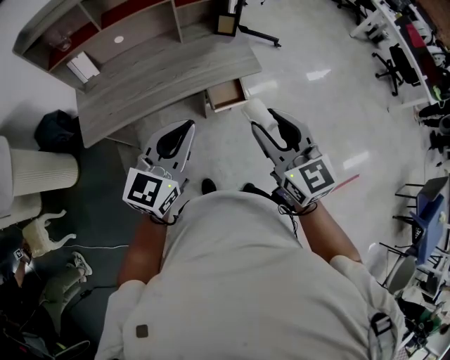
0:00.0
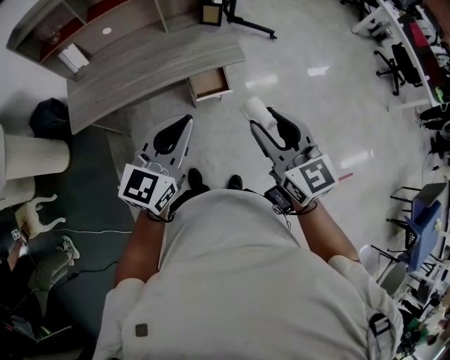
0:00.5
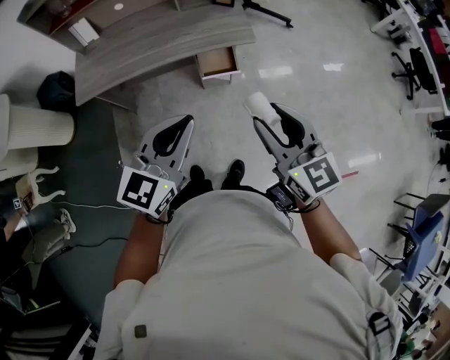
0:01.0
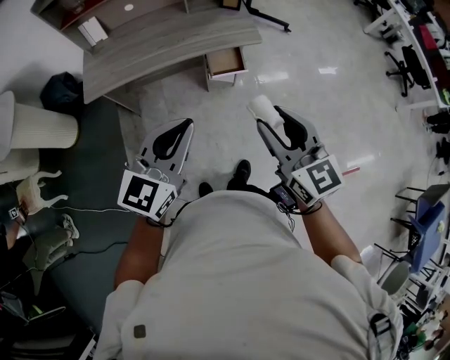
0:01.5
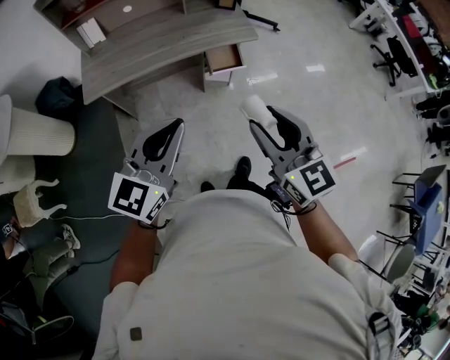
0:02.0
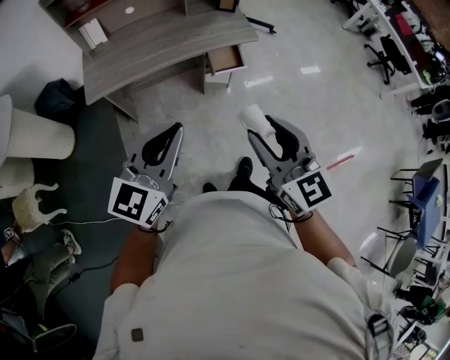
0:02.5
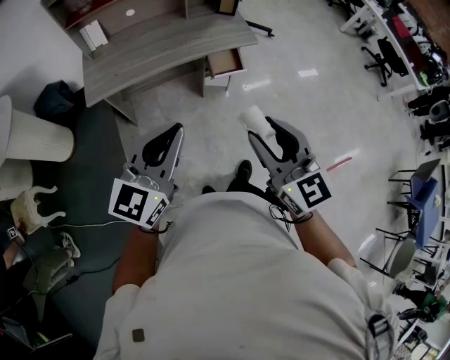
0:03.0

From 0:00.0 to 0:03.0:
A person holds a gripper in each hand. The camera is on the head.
From 0:00.0 to 0:01.5: The left gripper is displaced backward by approximately 15 cm, while the right gripper travels backward and to the right by some 15 cm.
From 0:01.5 to 0:03.0: Both grippers move to the left and backward, roughly 15 cm.

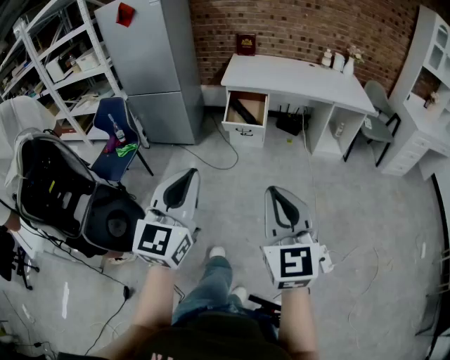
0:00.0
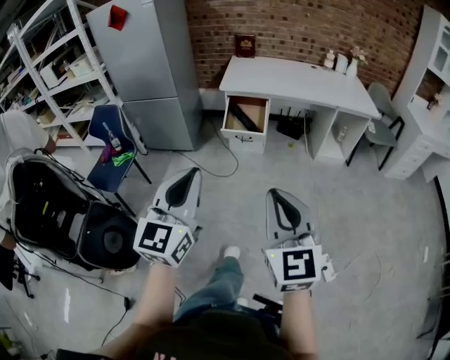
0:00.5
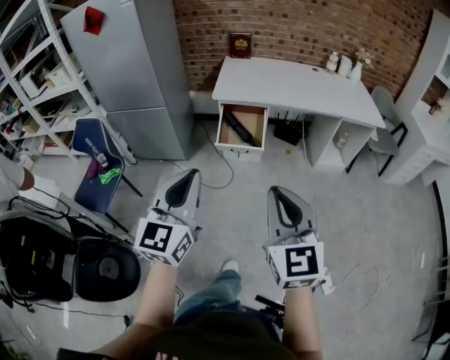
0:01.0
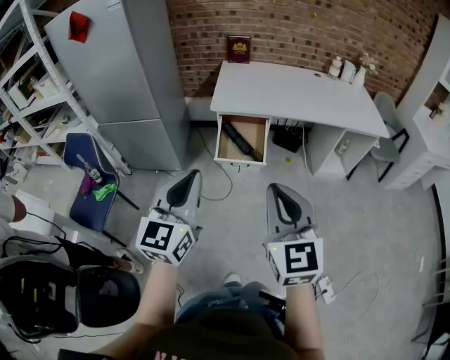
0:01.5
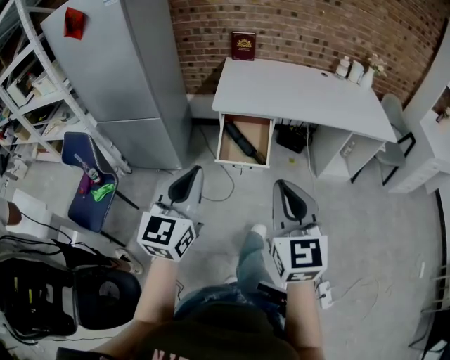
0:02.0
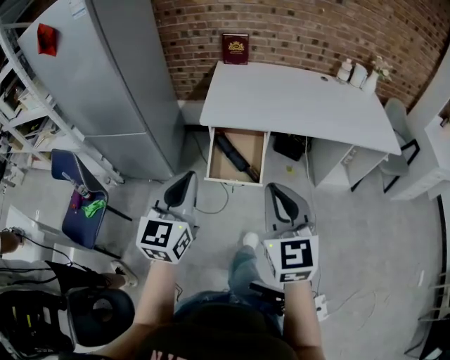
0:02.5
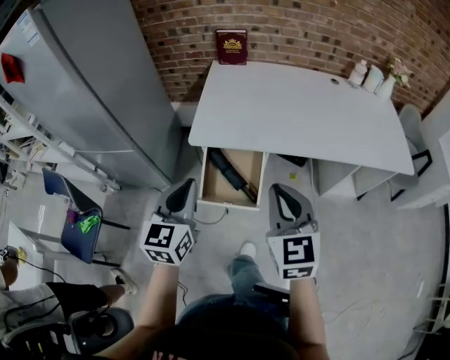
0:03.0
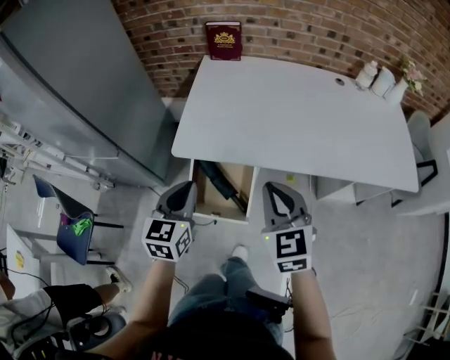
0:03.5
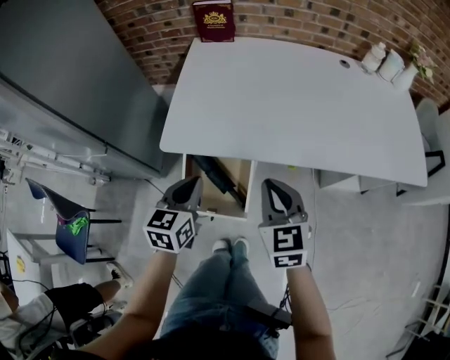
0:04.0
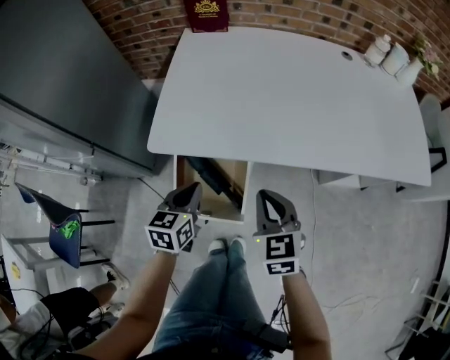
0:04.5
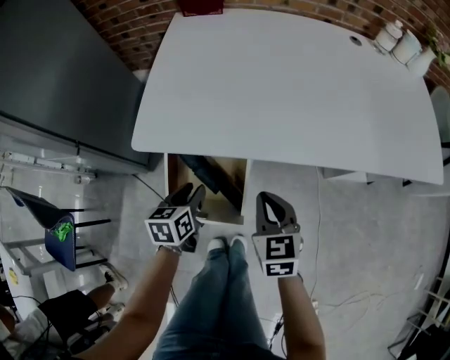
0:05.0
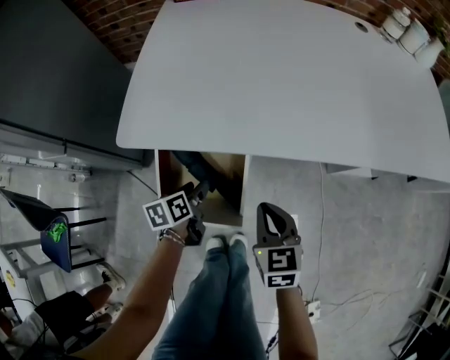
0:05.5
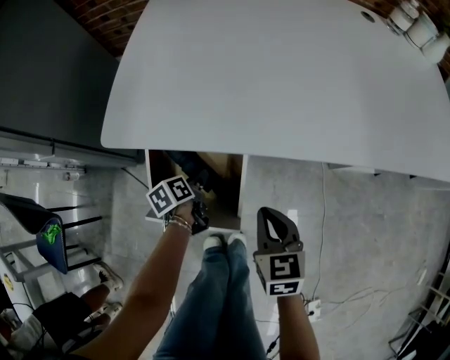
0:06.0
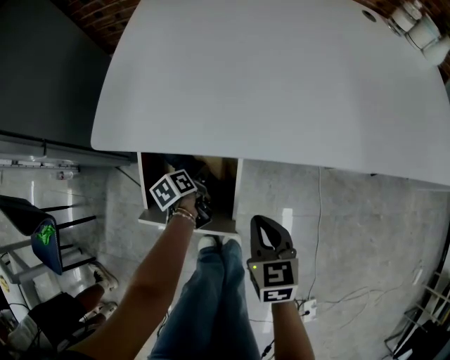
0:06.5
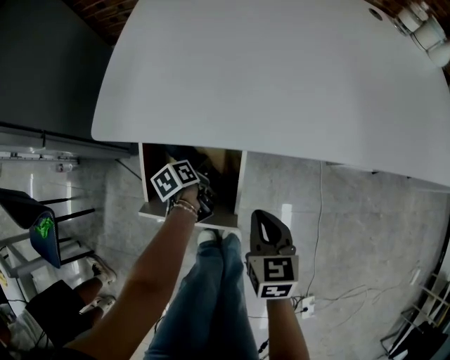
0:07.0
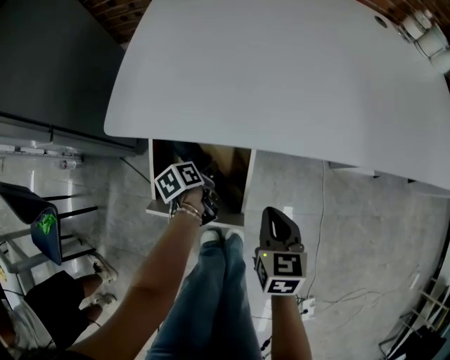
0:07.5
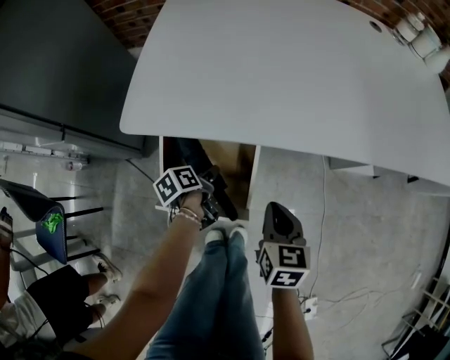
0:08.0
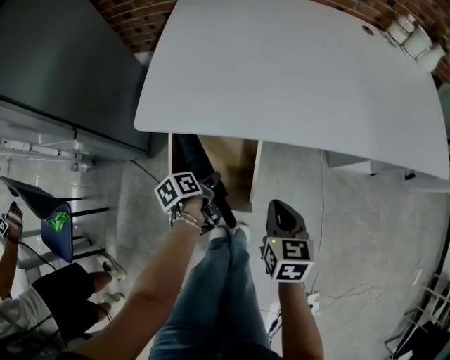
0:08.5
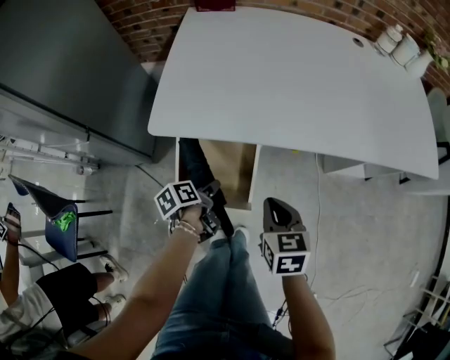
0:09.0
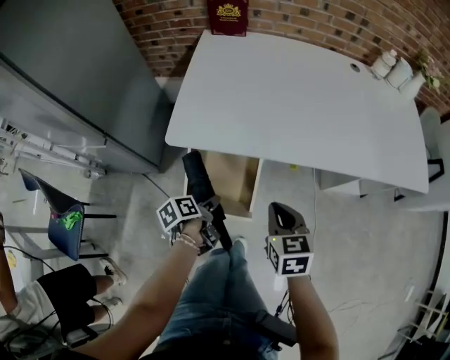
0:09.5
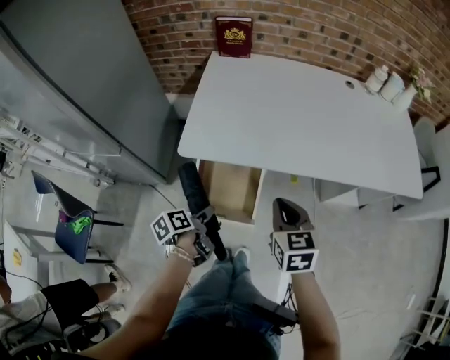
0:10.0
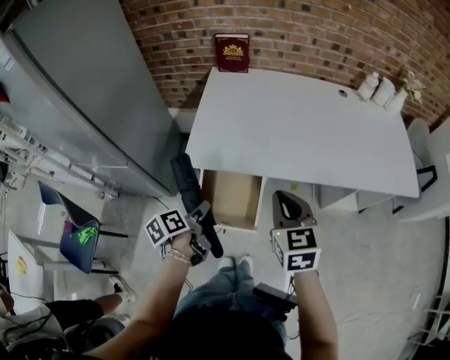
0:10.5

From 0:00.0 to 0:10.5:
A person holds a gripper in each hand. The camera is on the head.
From 0:00.0 to 0:02.0: The two grippers travel together, forward, roughly 40 cm.
From 0:02.0 to 0:04.0: The pair of grippers is taken forward, about 50 cm. The left gripper goes some 20 cm downward, and swivels roughly 30 degrees; the right gripper turns by some 20 degrees.
From 0:04.0 to 0:06.5: The right gripper moves downward, roughly 25 cm, and turns by approximately 20 degrees. The left gripper travels downward by roughly 40 cm, rotates around the line of its fingers by some 50 degrees, counterclockwise from behind, and opens its fingers.
From 0:06.5 to 0:08.5: The left gripper moves upward and backward, roughly 10 cm; the right gripper moves upward, approximately 5 cm.
From 0:08.5 to 0:10.5: The two grippers go approximately 25 cm upward. The right gripper changes its angle by about 20 degrees.

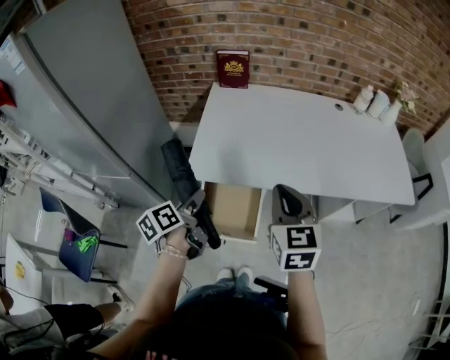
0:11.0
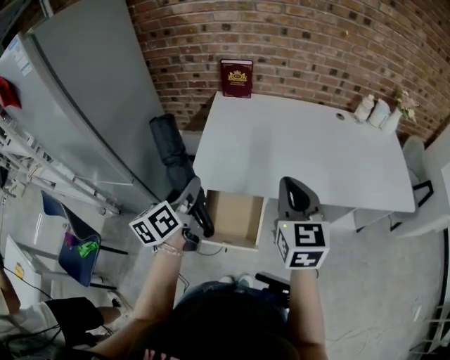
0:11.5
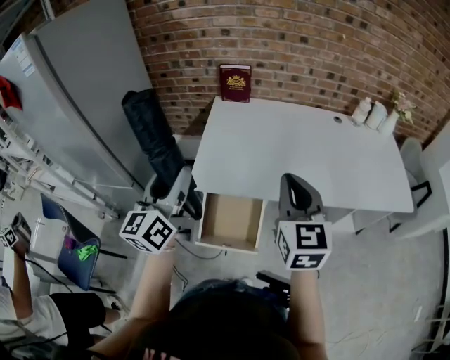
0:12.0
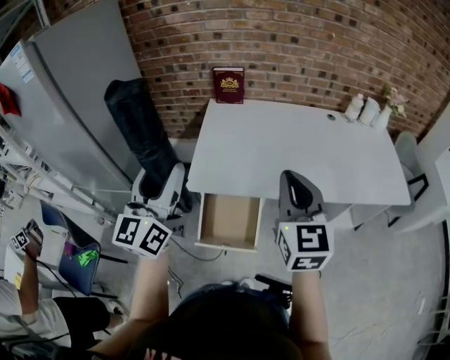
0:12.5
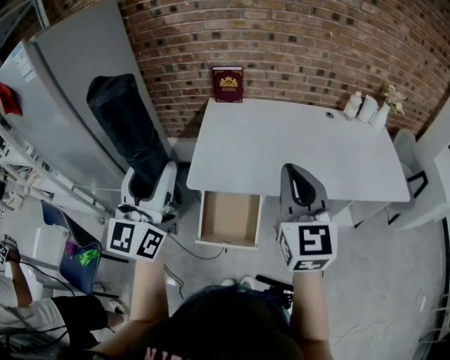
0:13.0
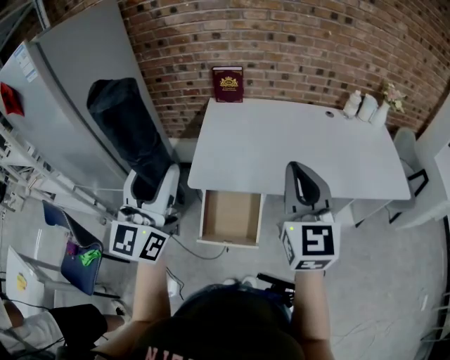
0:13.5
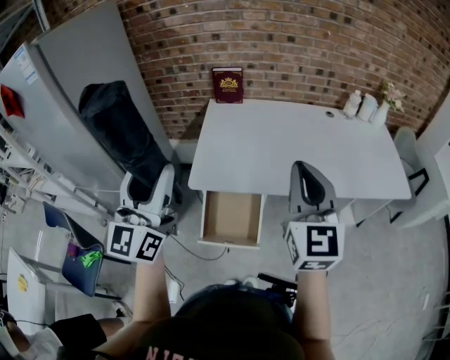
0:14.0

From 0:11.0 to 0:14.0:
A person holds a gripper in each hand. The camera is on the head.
From 0:11.0 to 0:12.5: The right gripper heads upward, covering some 10 cm. The left gripper heads upward, covering about 25 cm, and points its fingers some 40 degrees further upward.
From 0:12.5 to 0:14.0: The left gripper changes place by approximately 5 cm. The right gripper changes place by some 5 cm.

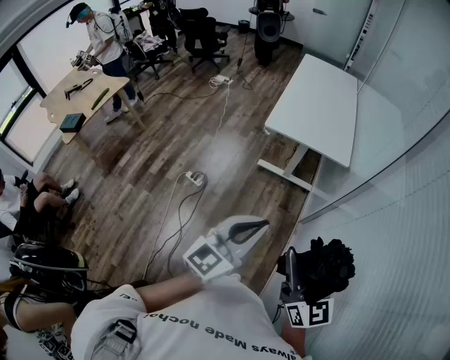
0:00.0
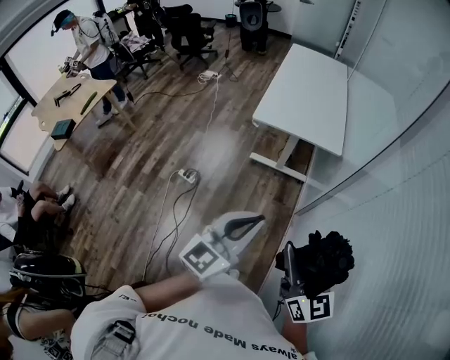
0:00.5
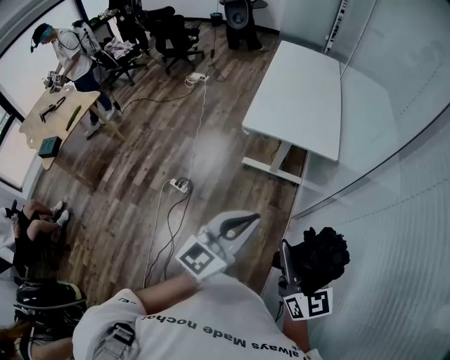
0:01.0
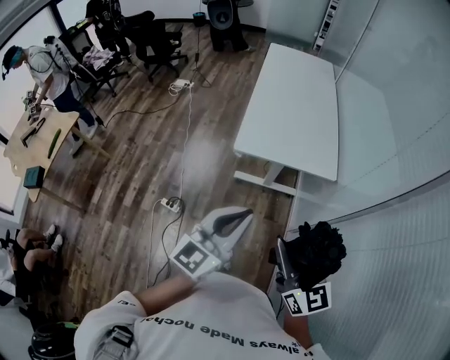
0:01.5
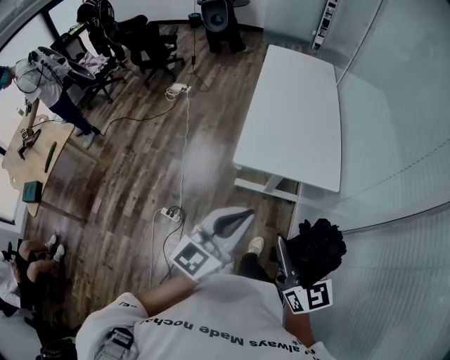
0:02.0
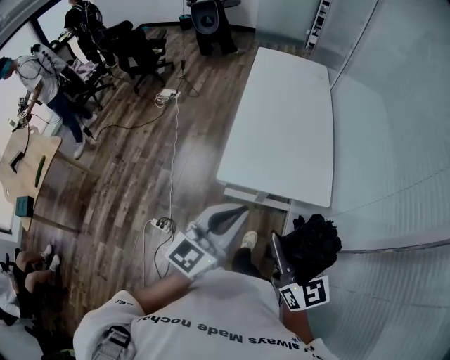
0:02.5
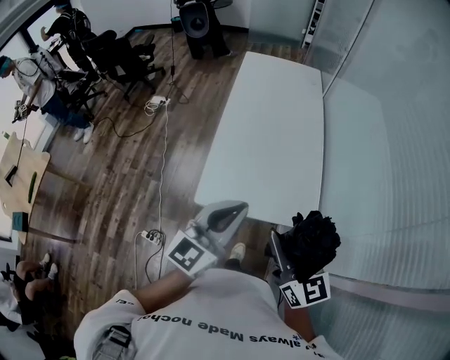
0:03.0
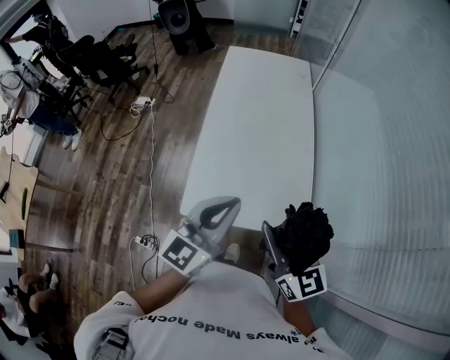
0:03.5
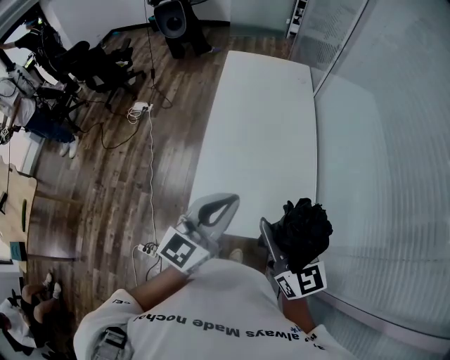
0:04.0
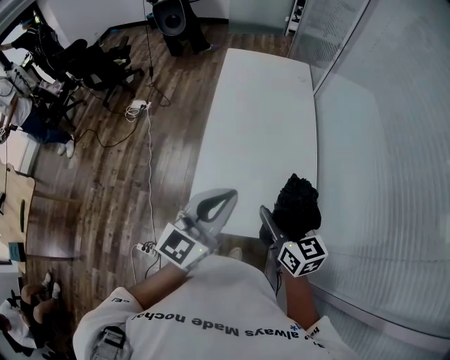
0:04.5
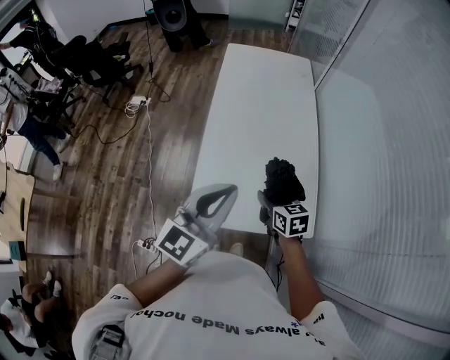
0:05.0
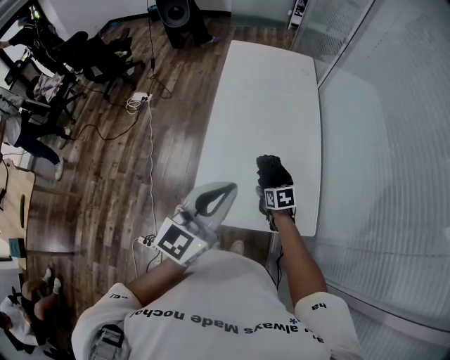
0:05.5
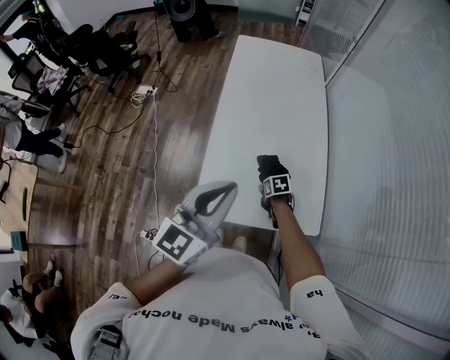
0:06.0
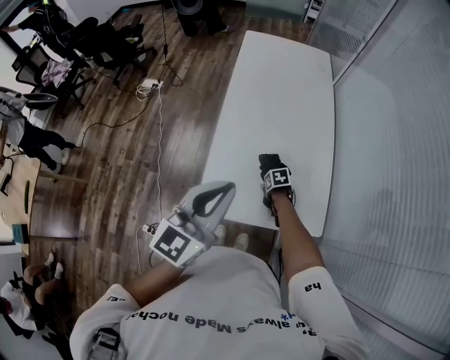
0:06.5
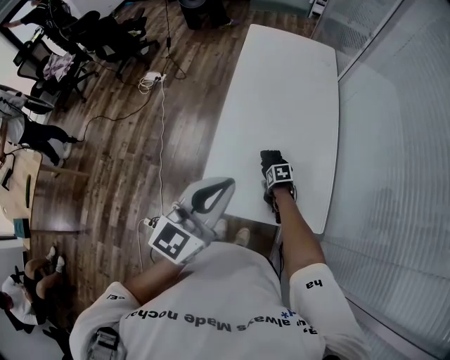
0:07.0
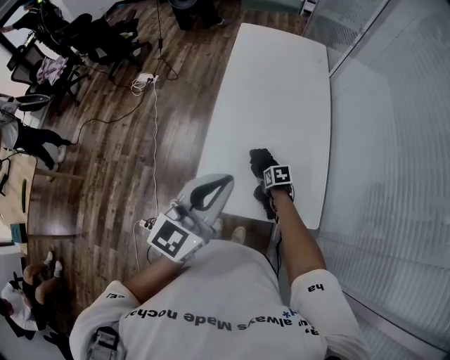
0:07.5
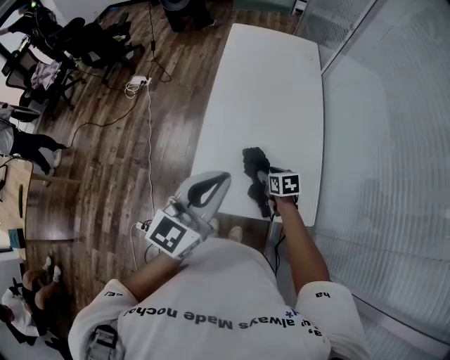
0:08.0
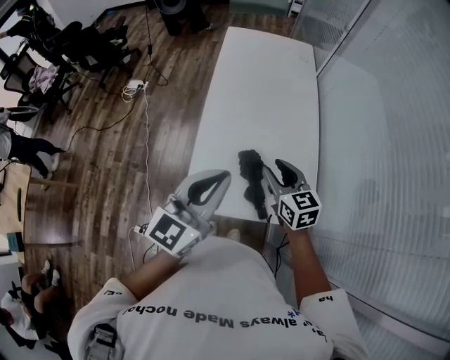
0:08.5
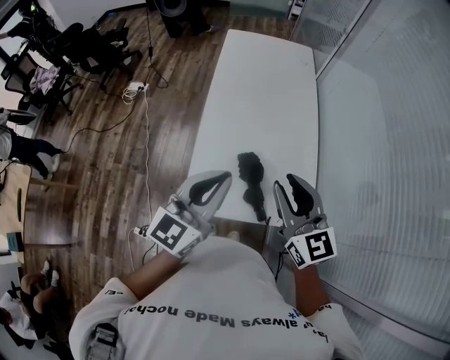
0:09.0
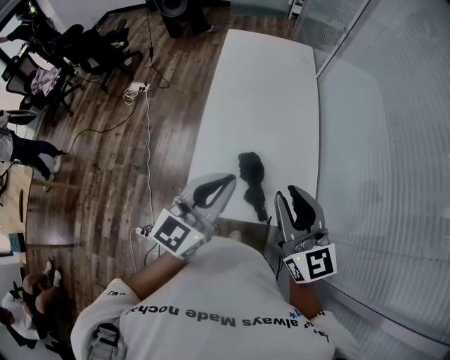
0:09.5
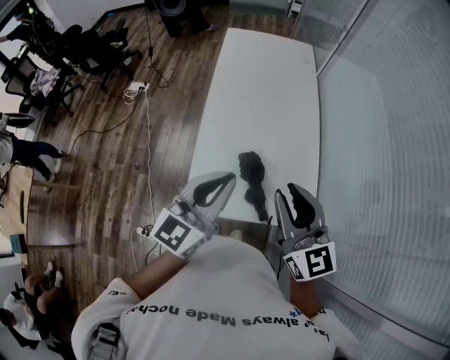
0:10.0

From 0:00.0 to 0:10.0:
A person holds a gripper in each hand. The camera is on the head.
From 0:00.0 to 0:02.0: The two grippers travel together, forward, some 40 cm.
From 0:02.0 to 0:04.0: The pair of grippers is taken forward, roughly 50 cm.
From 0:04.0 to 0:06.0: The right gripper is displaced downward by about 40 cm, and tips its fingers downward by approximately 70 degrees.
From 0:06.0 to 0:08.0: The right gripper goes approximately 10 cm upward.
From 0:08.0 to 0:10.0: The right gripper goes approximately 35 cm upward, angles its fingers upward, by some 50 degrees, and closes.
